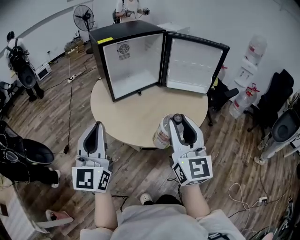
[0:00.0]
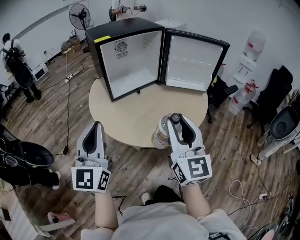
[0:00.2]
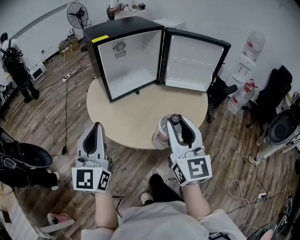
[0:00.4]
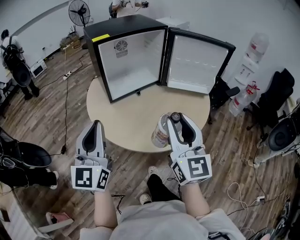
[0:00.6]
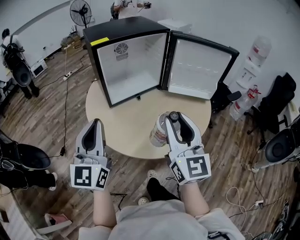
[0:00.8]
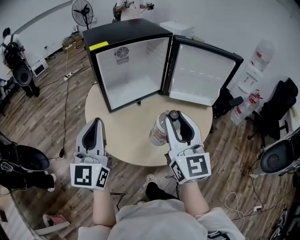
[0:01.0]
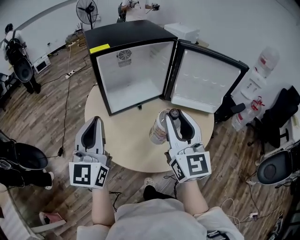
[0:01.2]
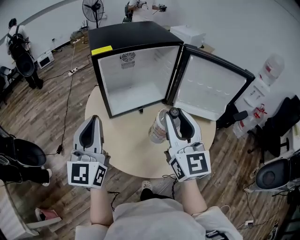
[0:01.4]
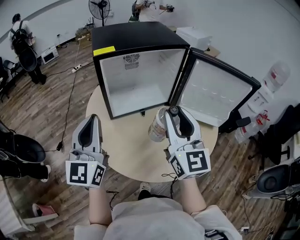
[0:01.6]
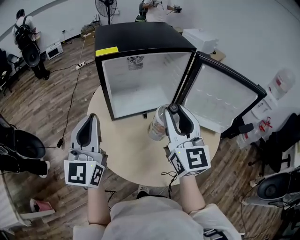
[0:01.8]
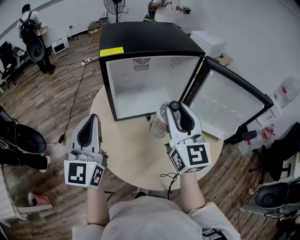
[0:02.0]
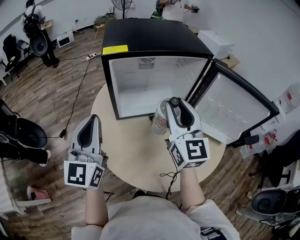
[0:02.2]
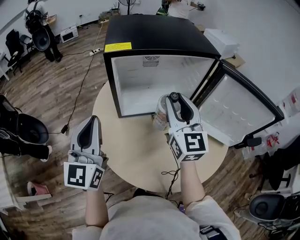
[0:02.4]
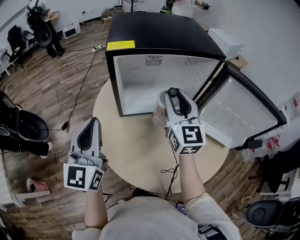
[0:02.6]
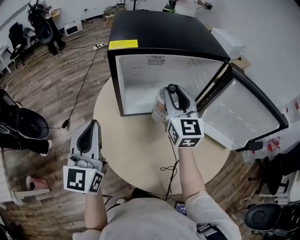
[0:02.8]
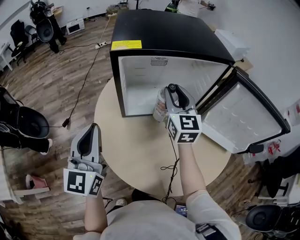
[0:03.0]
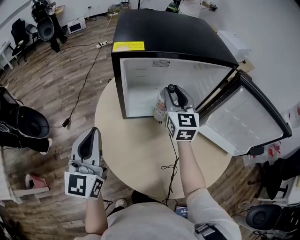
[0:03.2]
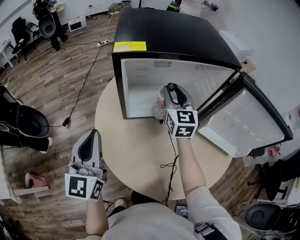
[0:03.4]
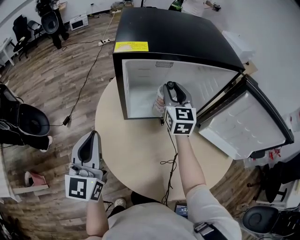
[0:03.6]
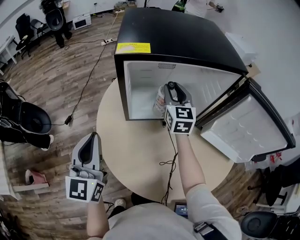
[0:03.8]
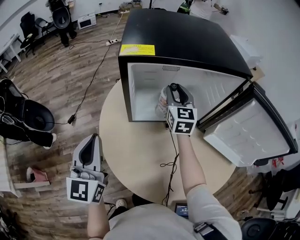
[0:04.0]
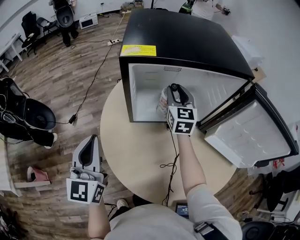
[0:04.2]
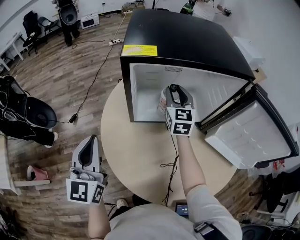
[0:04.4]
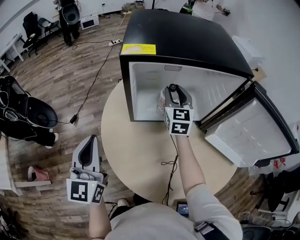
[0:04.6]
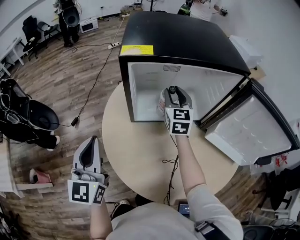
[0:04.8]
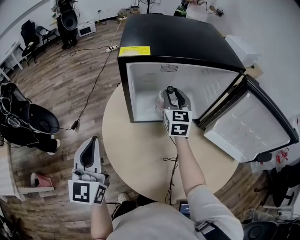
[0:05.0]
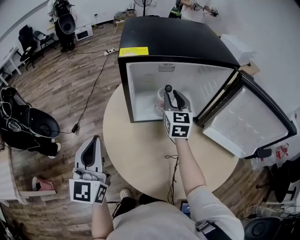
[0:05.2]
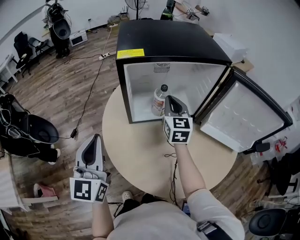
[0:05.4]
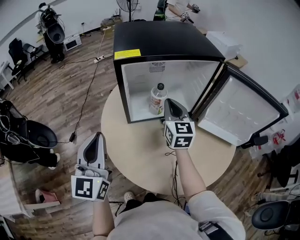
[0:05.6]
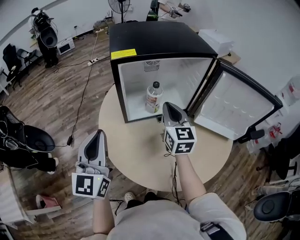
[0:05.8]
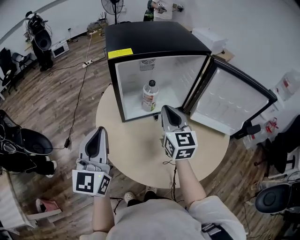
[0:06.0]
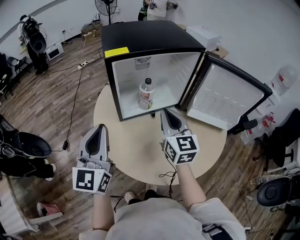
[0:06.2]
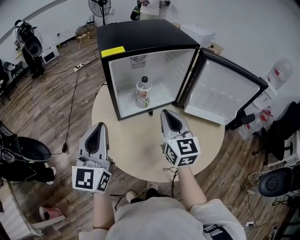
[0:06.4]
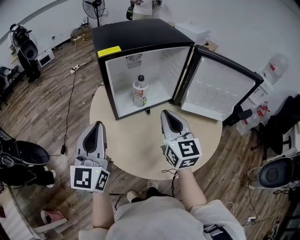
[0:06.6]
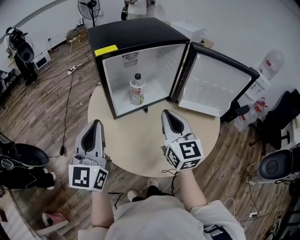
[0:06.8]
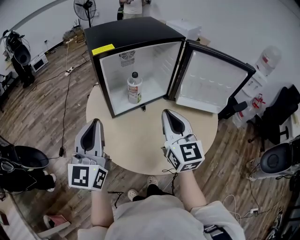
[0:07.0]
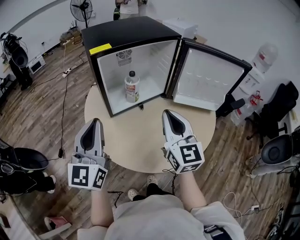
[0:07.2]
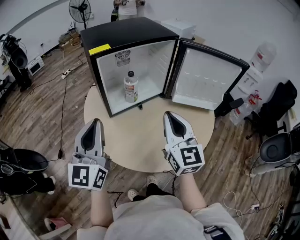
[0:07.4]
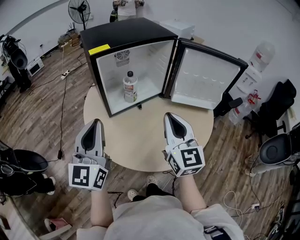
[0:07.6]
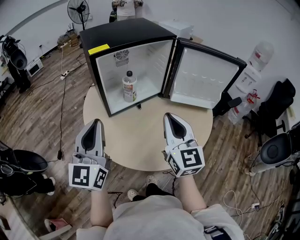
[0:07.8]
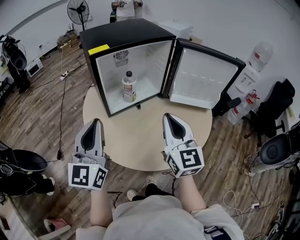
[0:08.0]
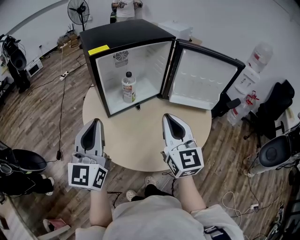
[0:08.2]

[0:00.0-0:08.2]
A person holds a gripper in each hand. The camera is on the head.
0:00.0 to 0:01.6: Both grippers travel together forward, roughly 25 cm.
0:01.6 to 0:03.2: The left gripper goes some 10 cm downward and forward. Meanwhile the right gripper heads forward and downward, covering approximately 30 cm.
0:03.2 to 0:05.0: The right gripper moves about 5 cm.
0:05.0 to 0:06.6: The left gripper goes roughly 5 cm upward, and turns by roughly 20 degrees; the right gripper shifts roughly 25 cm backward, and closes its fingers.
0:06.6 to 0:08.2: The right gripper goes approximately 10 cm backward.

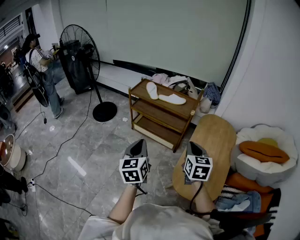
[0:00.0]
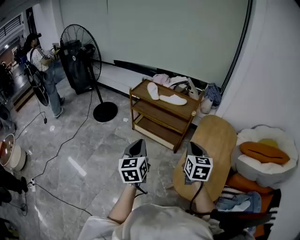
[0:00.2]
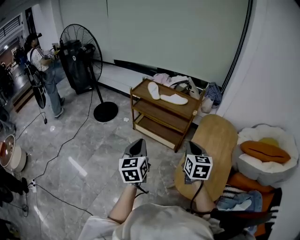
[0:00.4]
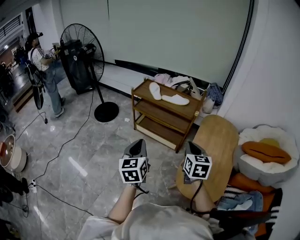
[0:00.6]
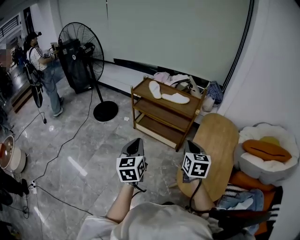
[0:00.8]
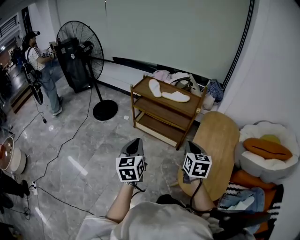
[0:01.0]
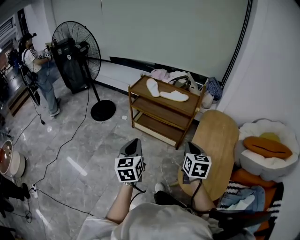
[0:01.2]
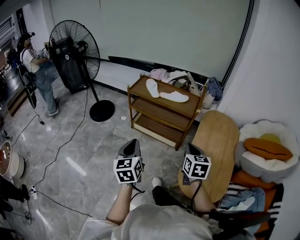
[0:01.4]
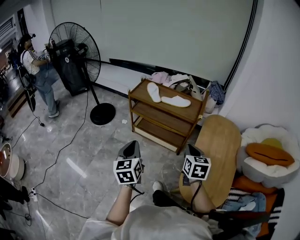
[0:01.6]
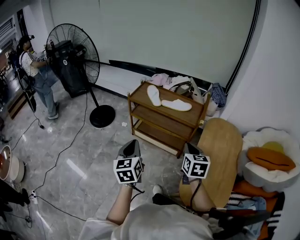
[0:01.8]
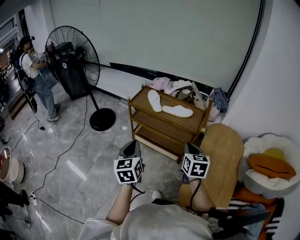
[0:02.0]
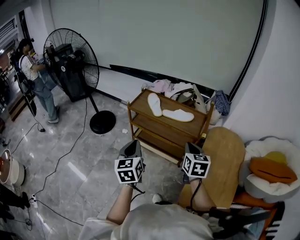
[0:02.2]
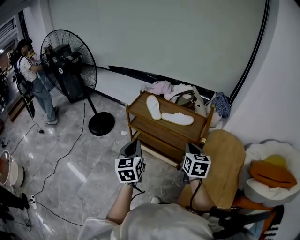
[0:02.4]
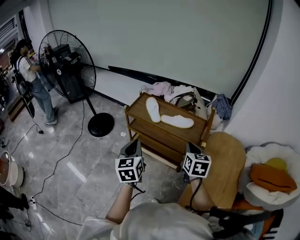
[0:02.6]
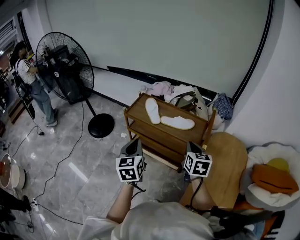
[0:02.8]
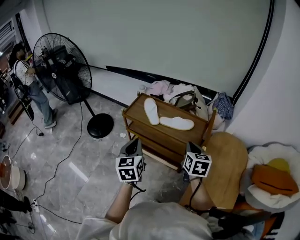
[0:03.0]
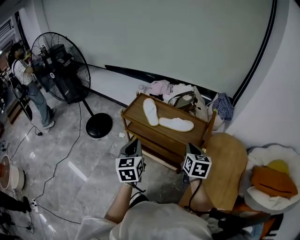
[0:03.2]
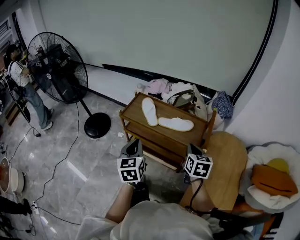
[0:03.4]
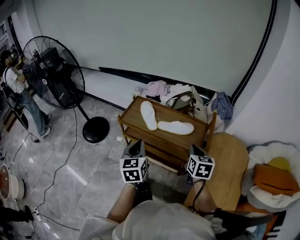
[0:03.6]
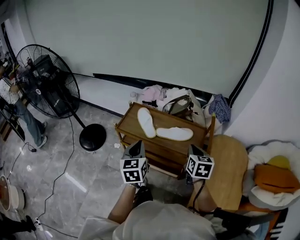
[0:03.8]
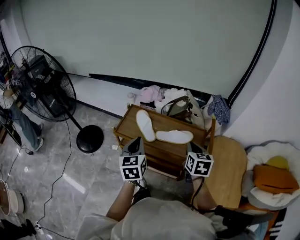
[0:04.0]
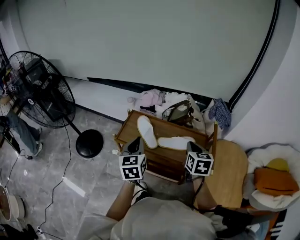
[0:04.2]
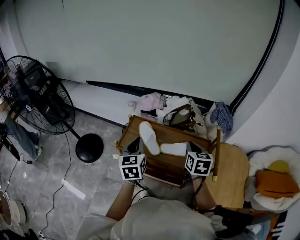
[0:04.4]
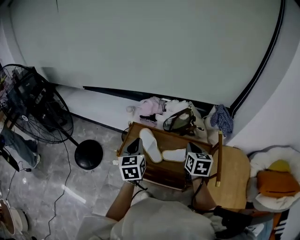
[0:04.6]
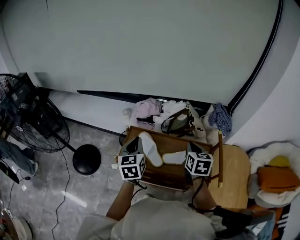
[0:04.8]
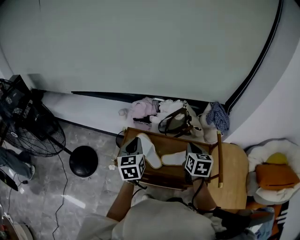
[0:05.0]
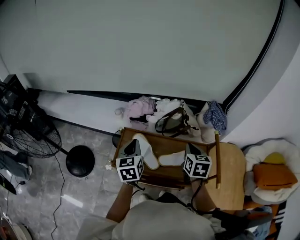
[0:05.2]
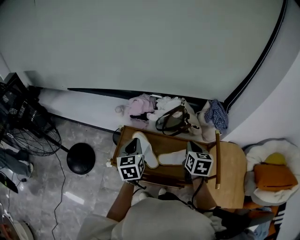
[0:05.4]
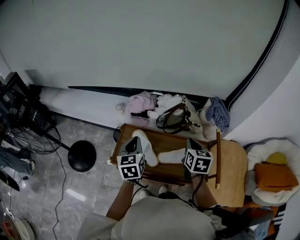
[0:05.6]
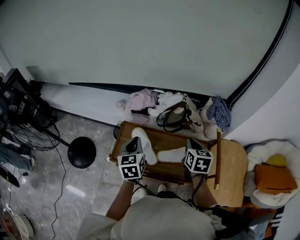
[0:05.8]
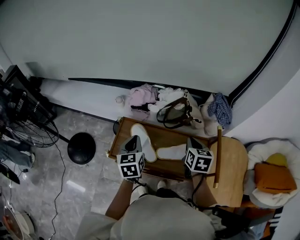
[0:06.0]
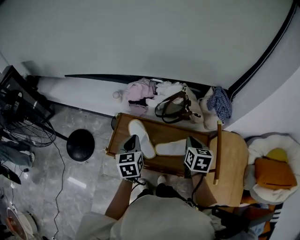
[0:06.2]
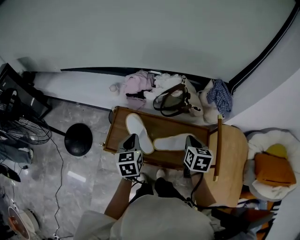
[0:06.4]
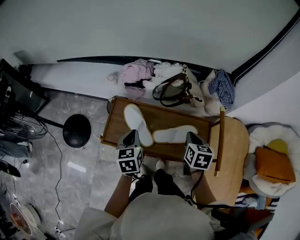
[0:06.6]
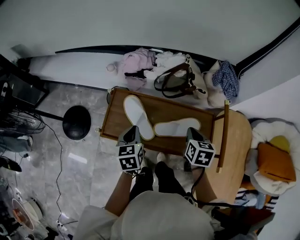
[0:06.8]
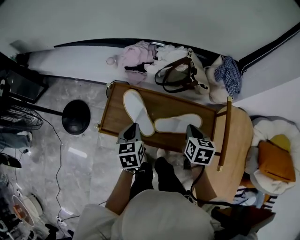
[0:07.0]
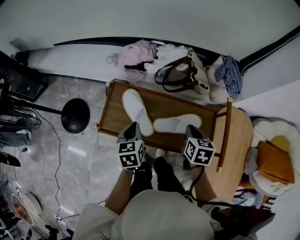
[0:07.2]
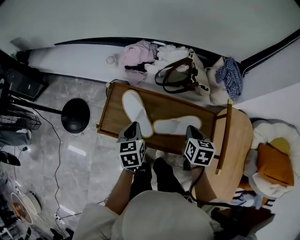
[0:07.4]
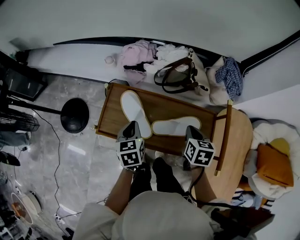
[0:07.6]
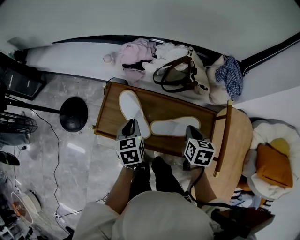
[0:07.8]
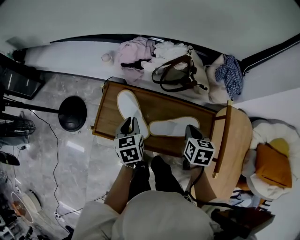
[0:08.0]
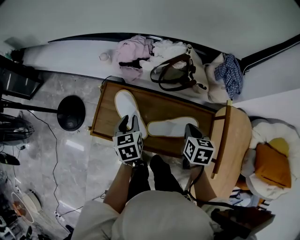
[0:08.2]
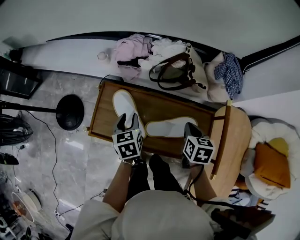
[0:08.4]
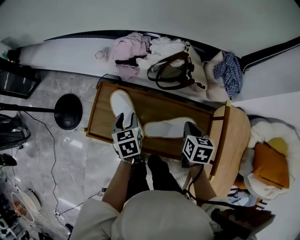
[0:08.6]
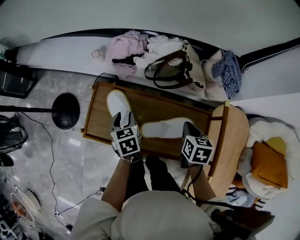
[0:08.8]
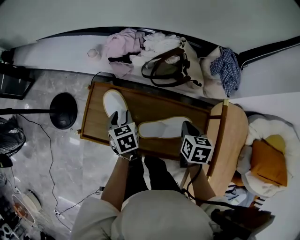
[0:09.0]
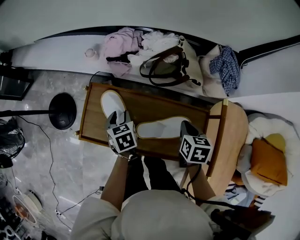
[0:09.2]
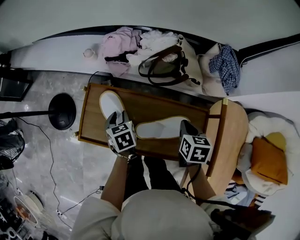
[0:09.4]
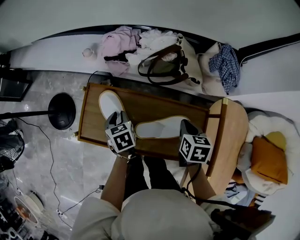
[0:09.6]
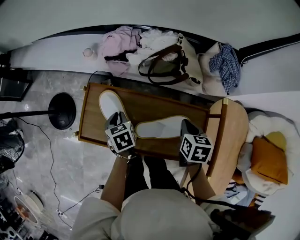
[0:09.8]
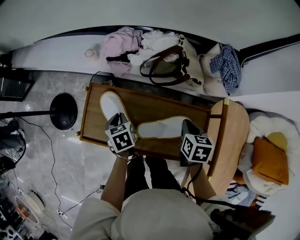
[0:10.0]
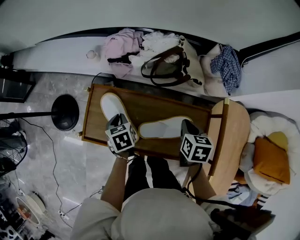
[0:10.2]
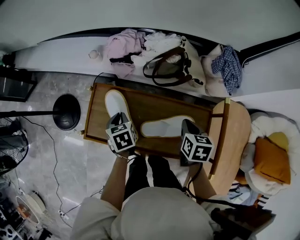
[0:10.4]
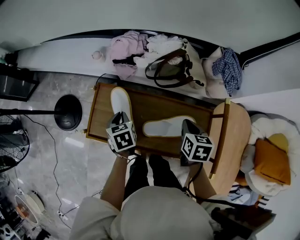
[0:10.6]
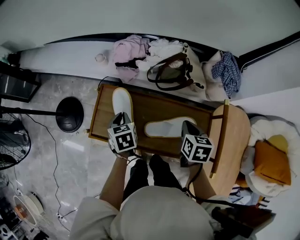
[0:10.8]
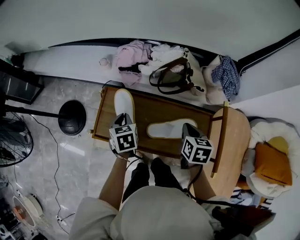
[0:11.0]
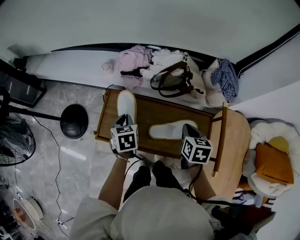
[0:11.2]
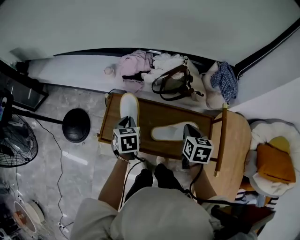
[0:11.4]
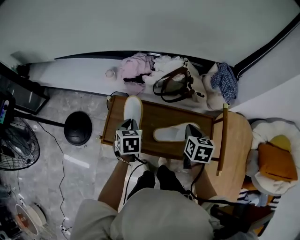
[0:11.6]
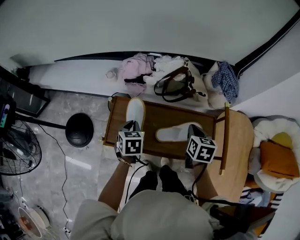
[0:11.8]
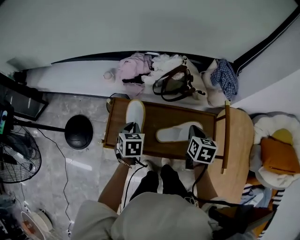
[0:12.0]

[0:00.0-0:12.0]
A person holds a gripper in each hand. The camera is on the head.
0:00.0 to 0:01.6: The left gripper is displaced to the left and forward by some 10 cm. The right gripper goes roughly 10 cm forward, downward and to the left.
0:01.6 to 0:03.0: Both grippers move forward, some 25 cm.
0:03.0 to 0:04.4: Both grippers move forward, approximately 20 cm.
0:04.4 to 0:06.0: The left gripper shifts roughly 10 cm forward and downward; the right gripper shifts some 10 cm forward.
0:06.0 to 0:07.6: The two grippers go some 10 cm downward.
0:07.6 to 0:09.0: The right gripper changes place by about 5 cm; the left gripper is displaced downward and forward by some 10 cm, and opens its fingers.
0:09.0 to 0:10.4: The left gripper closes its fingers.
0:10.4 to 0:12.0: The right gripper ends up approximately 5 cm from where it was, while the left gripper goes roughly 5 cm upward, and rotates about 20 degrees.

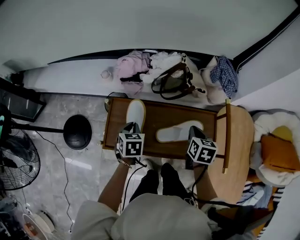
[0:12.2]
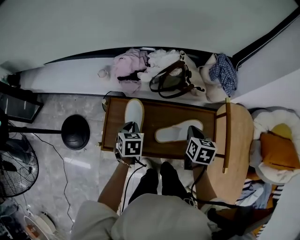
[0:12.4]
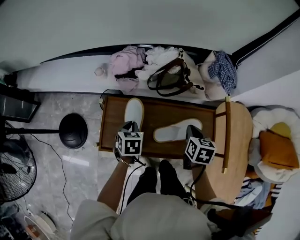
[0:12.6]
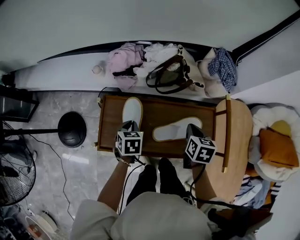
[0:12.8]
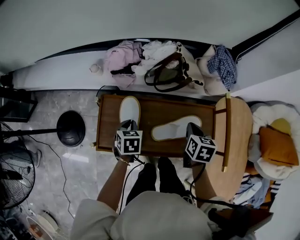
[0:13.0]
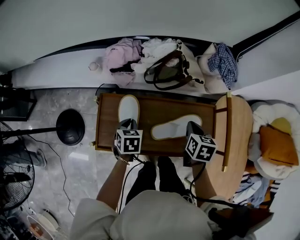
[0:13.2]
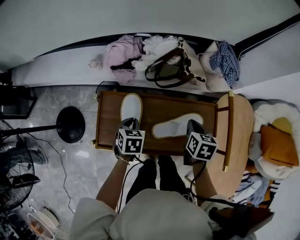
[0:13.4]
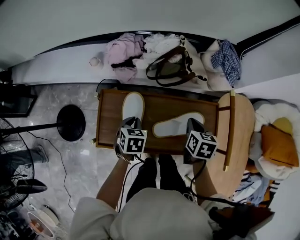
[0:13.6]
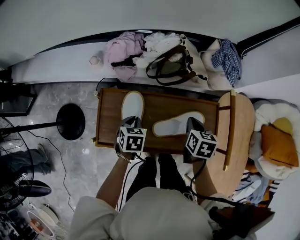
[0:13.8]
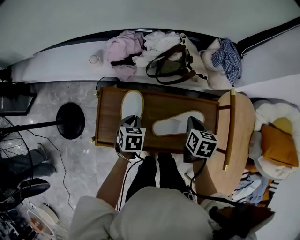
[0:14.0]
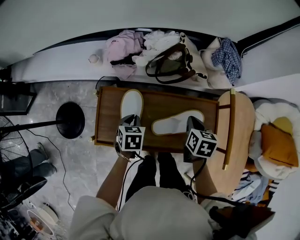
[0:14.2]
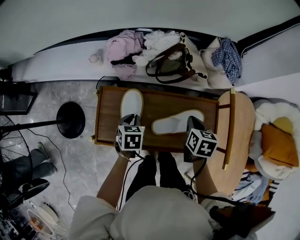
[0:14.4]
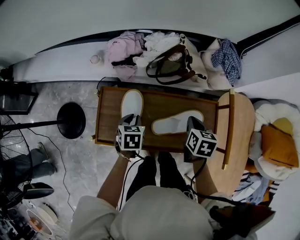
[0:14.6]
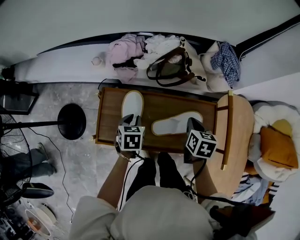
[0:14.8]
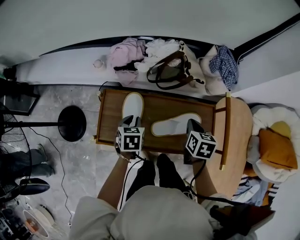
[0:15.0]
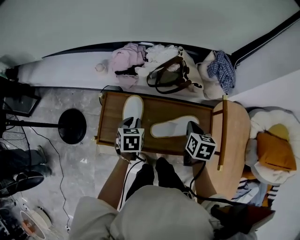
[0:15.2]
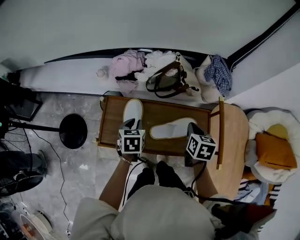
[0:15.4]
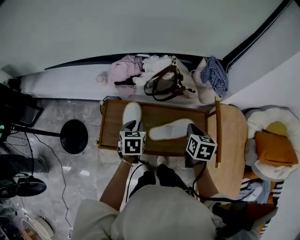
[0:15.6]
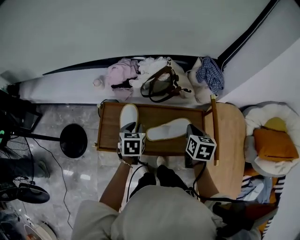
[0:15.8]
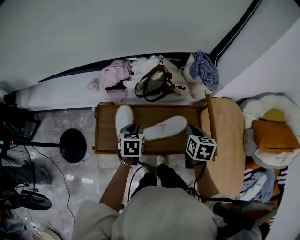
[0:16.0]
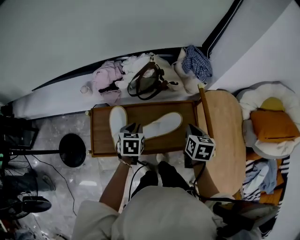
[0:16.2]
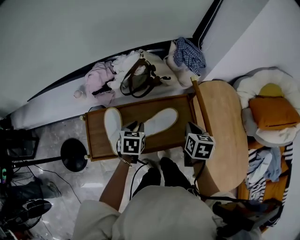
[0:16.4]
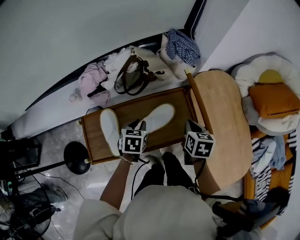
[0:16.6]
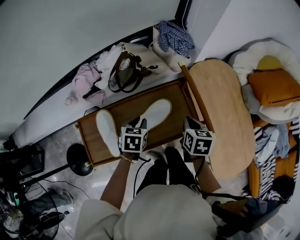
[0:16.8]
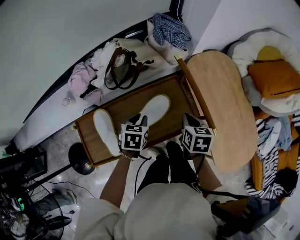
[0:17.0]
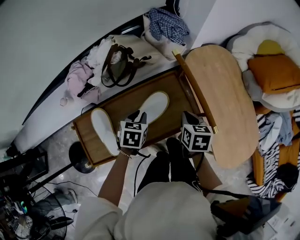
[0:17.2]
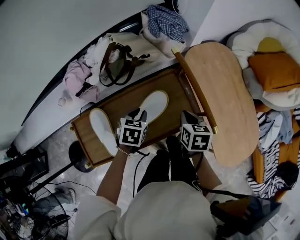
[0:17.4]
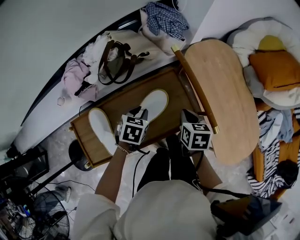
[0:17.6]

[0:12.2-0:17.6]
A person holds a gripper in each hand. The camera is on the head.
0:12.2 to 0:13.6: The left gripper ends up roughly 5 cm from where it was.
0:13.6 to 0:15.0: The grippers stay close to where they were, moving slightly.
0:15.0 to 0:16.2: Both grippers travel together to the right, about 10 cm.
0:16.2 to 0:17.6: The left gripper travels to the right, downward and forward by roughly 15 cm, and rotates about 40 degrees. Meanwhile the right gripper heads downward and to the right, covering some 10 cm.
